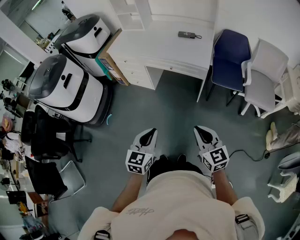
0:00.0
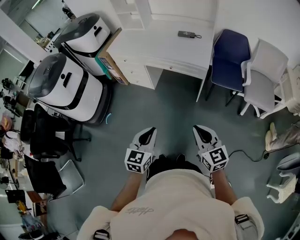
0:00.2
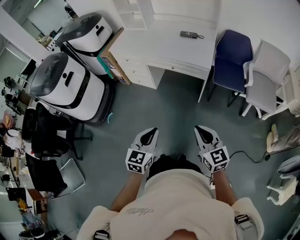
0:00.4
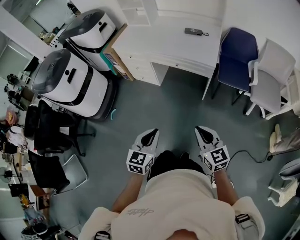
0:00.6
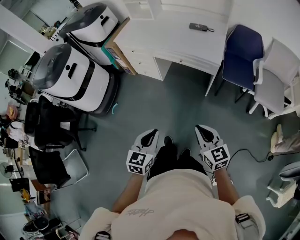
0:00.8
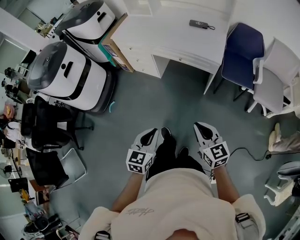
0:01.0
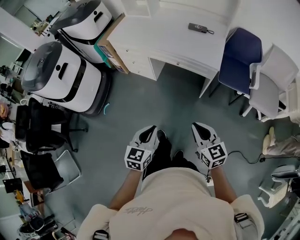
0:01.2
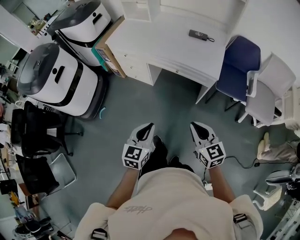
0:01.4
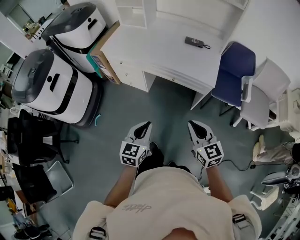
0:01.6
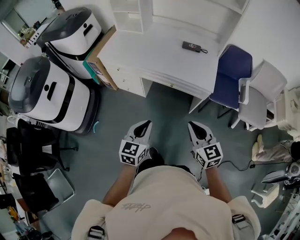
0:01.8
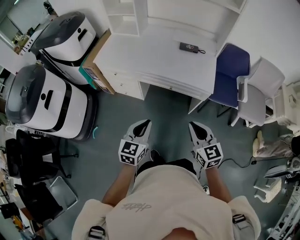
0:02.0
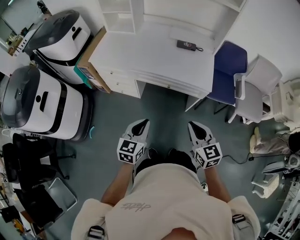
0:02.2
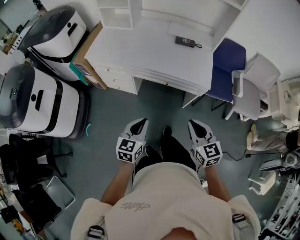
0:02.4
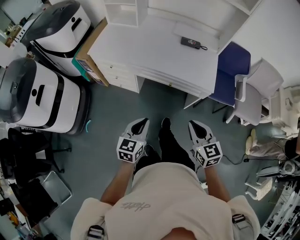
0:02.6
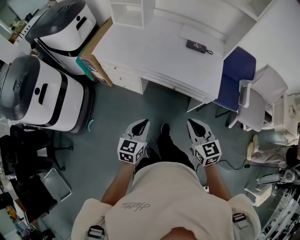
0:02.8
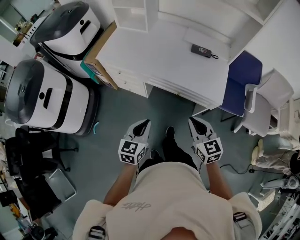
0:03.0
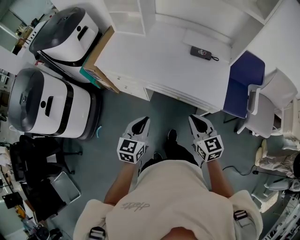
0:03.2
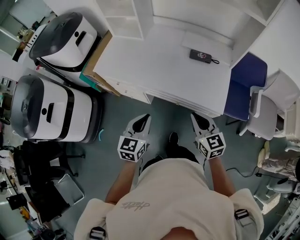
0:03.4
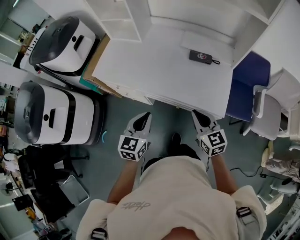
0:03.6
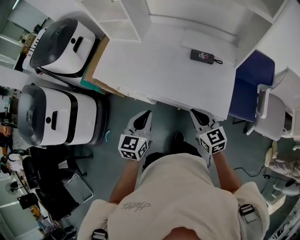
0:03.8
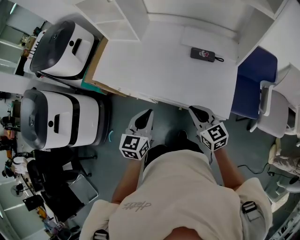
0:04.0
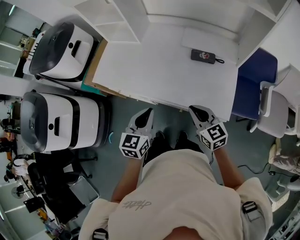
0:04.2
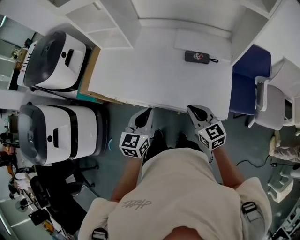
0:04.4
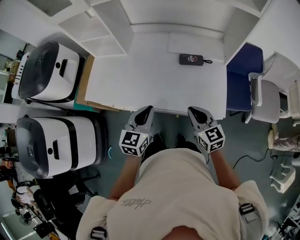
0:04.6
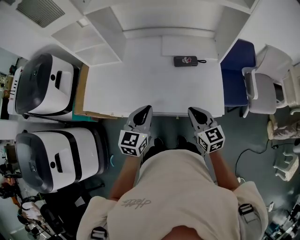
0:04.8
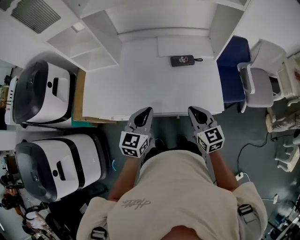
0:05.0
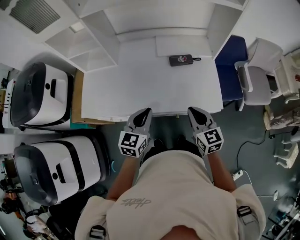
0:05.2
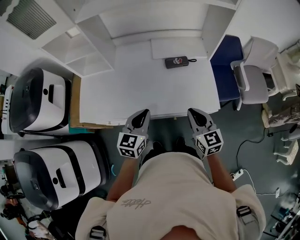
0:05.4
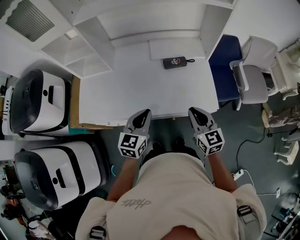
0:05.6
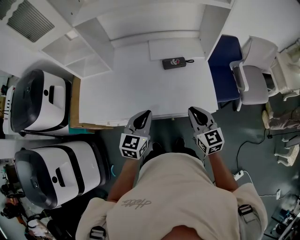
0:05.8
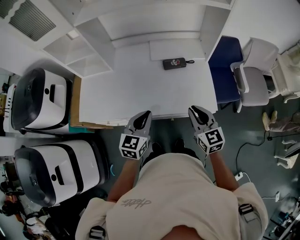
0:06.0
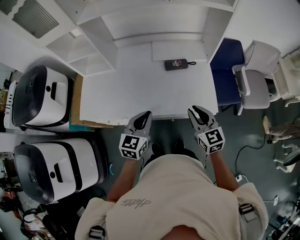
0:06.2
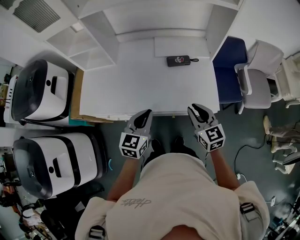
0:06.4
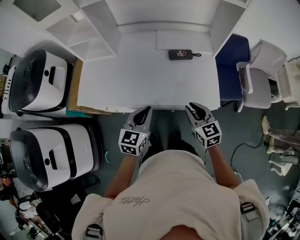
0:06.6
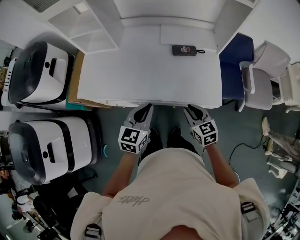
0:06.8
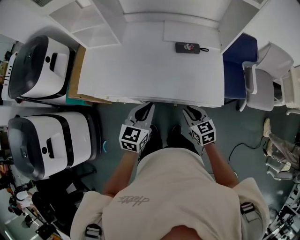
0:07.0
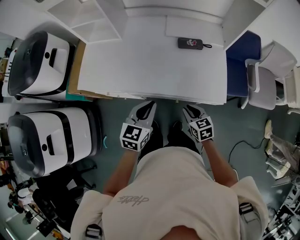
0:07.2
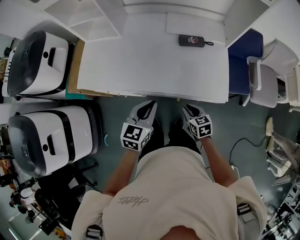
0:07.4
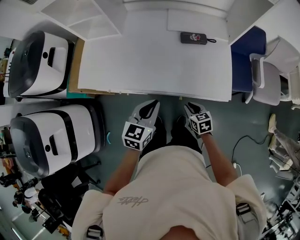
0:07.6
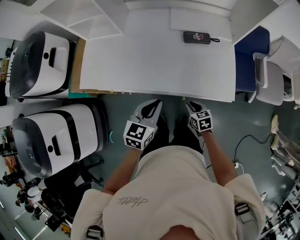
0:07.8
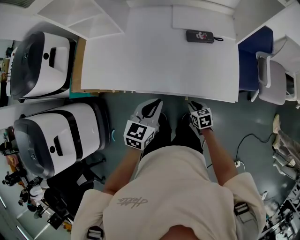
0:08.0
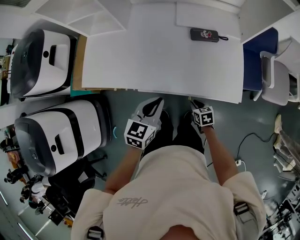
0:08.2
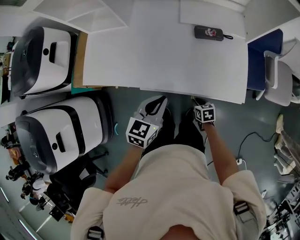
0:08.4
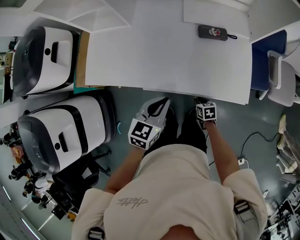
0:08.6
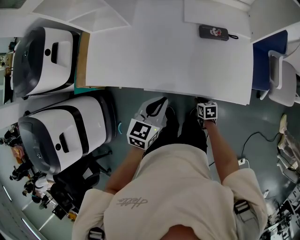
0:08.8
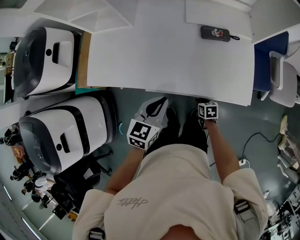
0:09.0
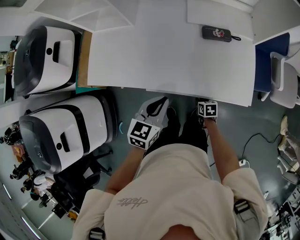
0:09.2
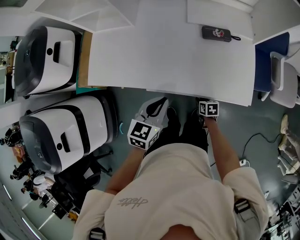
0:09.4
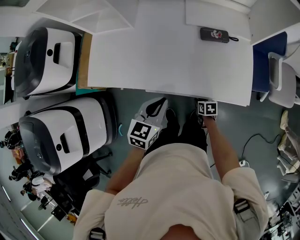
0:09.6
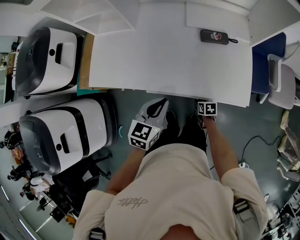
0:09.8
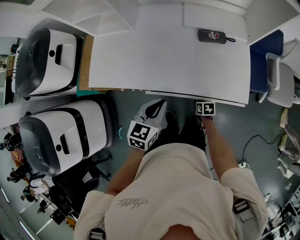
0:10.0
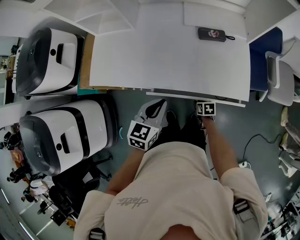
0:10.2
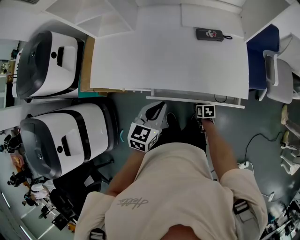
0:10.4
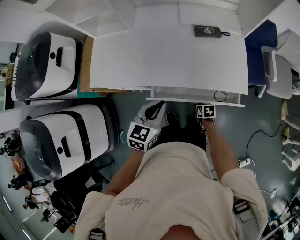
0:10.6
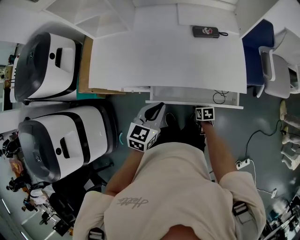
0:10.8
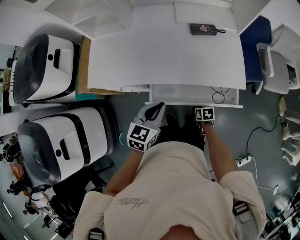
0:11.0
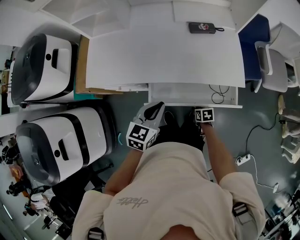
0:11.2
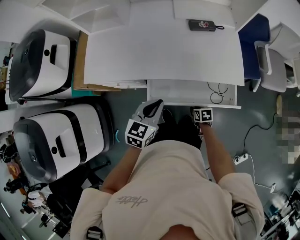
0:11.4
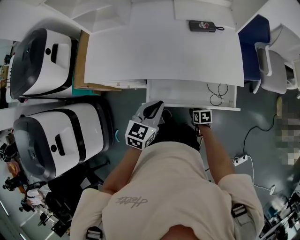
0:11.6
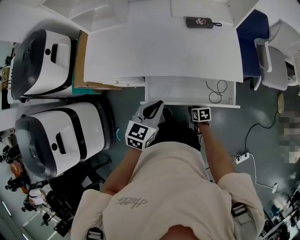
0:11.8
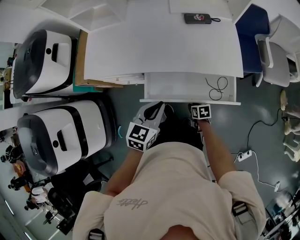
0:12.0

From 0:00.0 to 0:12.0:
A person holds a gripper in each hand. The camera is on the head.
From 0:00.0 to 0:01.6: The grippers both shift forward by roughly 20 cm.
From 0:01.6 to 0:03.0: The grippers both shift forward by approximately 15 cm.
From 0:03.0 to 0:04.4: The grippers both shift forward by approximately 25 cm.
From 0:04.4 to 0:06.0: The right gripper changes place by roughly 5 cm, and turns by about 20 degrees.
From 0:06.0 to 0:07.6: The right gripper travels downward by roughly 25 cm, and turns by roughly 40 degrees; the left gripper heads downward, covering roughly 5 cm.
From 0:07.6 to 0:09.0: The left gripper shifts by about 5 cm, while the right gripper moves downward, about 15 cm, and turns by some 20 degrees.
From 0:09.0 to 0:10.4: The left gripper changes place by approximately 5 cm.
From 0:10.4 to 0:12.0: Both grippers move backward, approximately 10 cm.

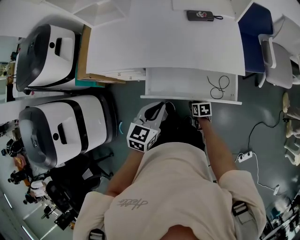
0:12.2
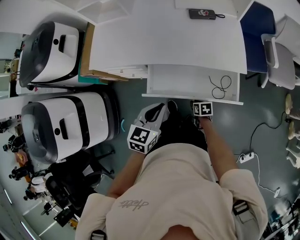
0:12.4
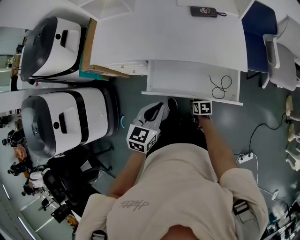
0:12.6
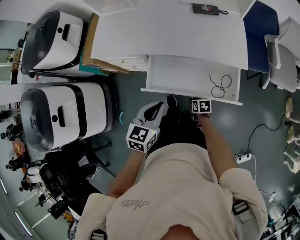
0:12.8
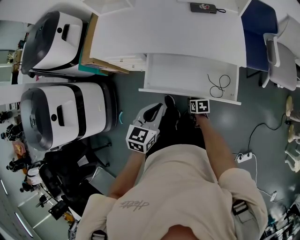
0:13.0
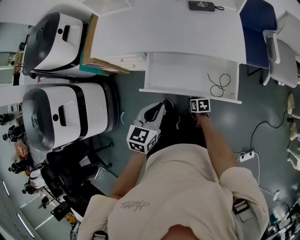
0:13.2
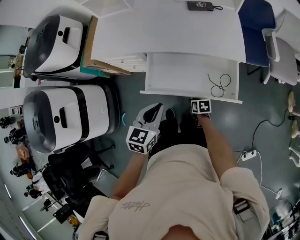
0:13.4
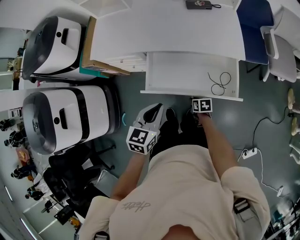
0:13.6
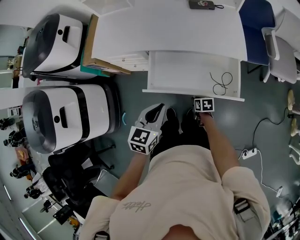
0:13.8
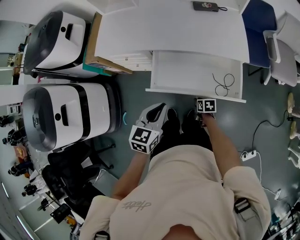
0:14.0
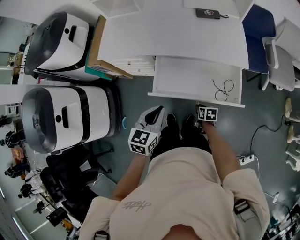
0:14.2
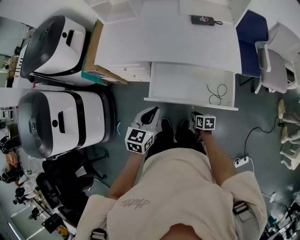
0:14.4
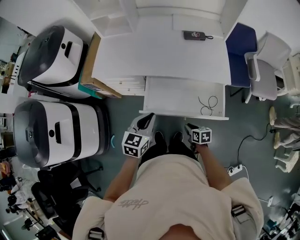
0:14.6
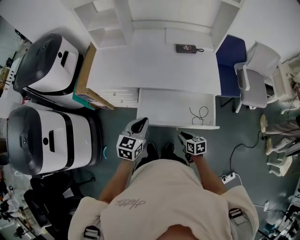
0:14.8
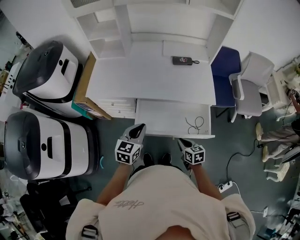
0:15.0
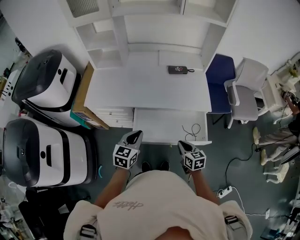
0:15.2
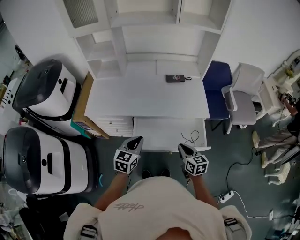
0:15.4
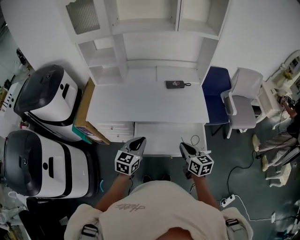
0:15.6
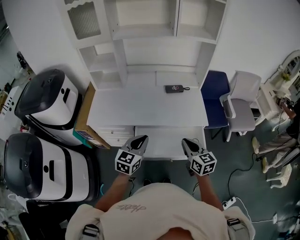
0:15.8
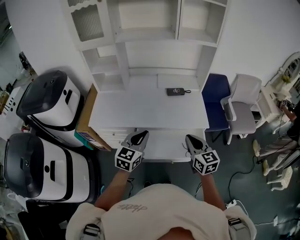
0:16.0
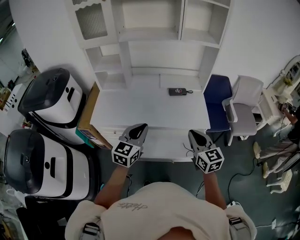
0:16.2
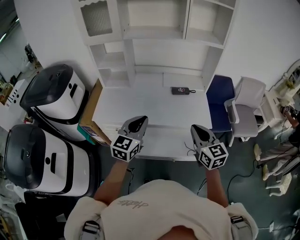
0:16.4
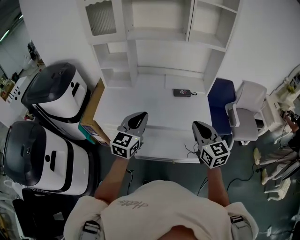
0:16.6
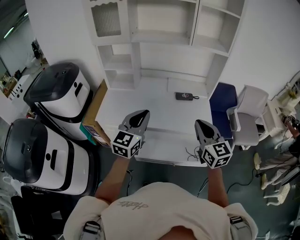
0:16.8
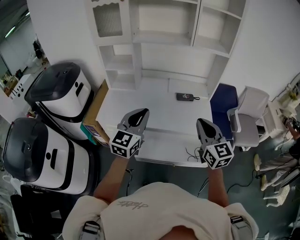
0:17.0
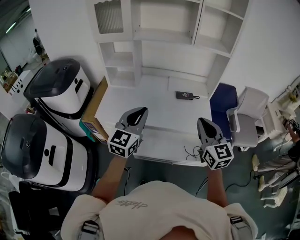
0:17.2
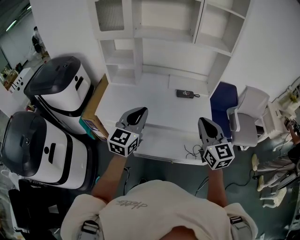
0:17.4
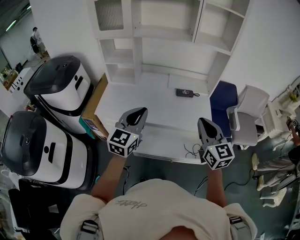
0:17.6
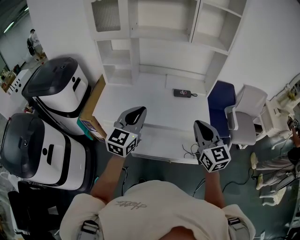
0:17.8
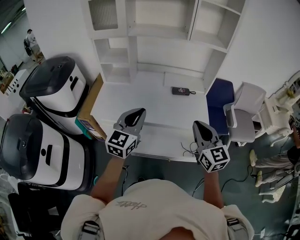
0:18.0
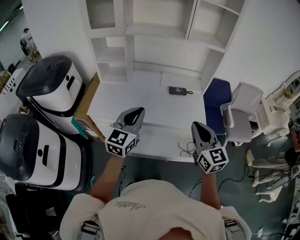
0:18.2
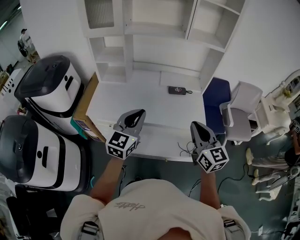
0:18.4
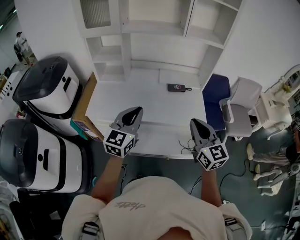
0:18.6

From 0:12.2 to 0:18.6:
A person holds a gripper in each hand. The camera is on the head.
From 0:12.2 to 0:13.8: The right gripper shifts about 5 cm backward, while the left gripper goes approximately 10 cm backward.
From 0:13.8 to 0:15.4: The left gripper heads forward and upward, covering about 10 cm; the right gripper is displaced upward by some 30 cm, and tilts its fingers roughly 30 degrees upward.
From 0:15.4 to 0:17.0: Both grippers move upward, roughly 25 cm. The left gripper turns by about 30 degrees; the right gripper turns by some 30 degrees.
From 0:17.0 to 0:18.6: There are only small adjustments of the grippers.

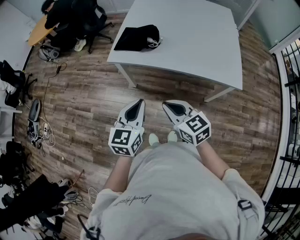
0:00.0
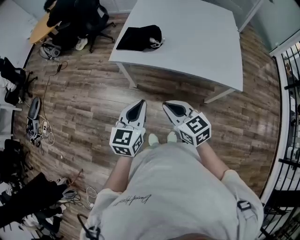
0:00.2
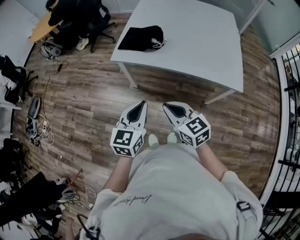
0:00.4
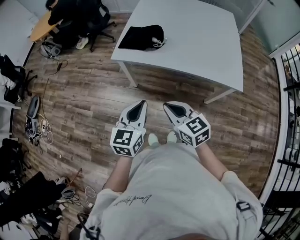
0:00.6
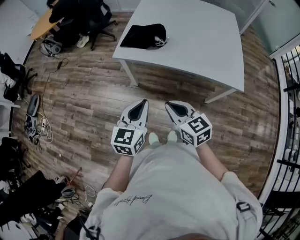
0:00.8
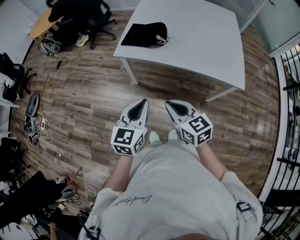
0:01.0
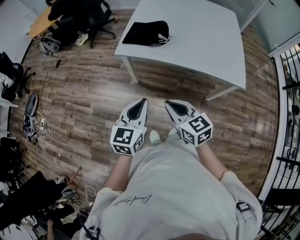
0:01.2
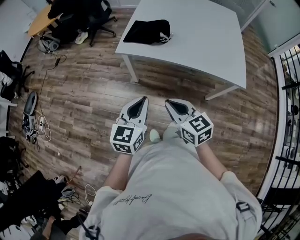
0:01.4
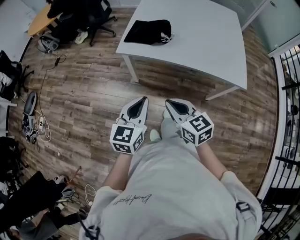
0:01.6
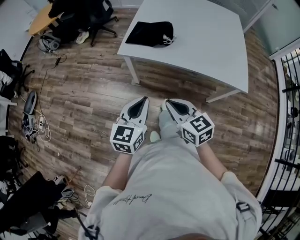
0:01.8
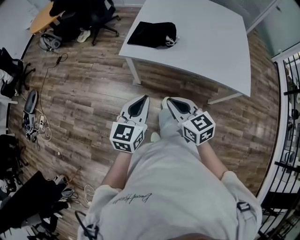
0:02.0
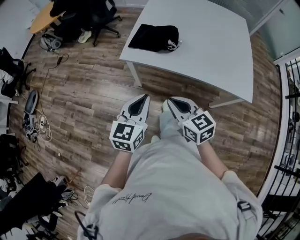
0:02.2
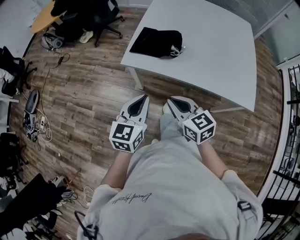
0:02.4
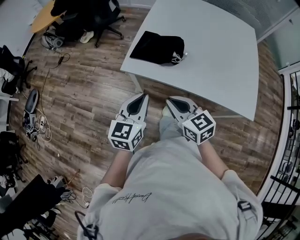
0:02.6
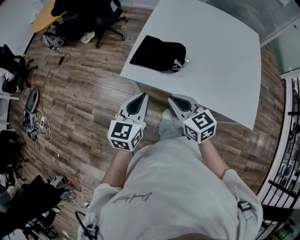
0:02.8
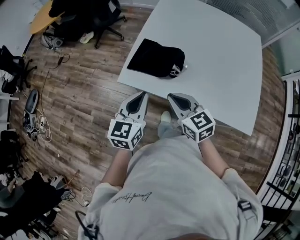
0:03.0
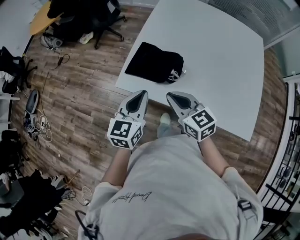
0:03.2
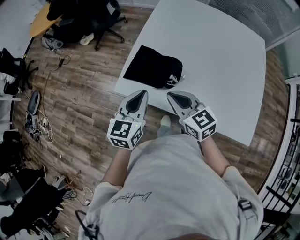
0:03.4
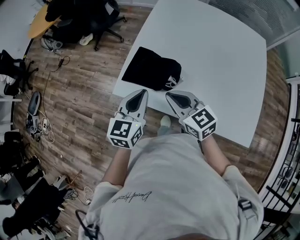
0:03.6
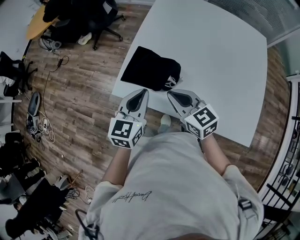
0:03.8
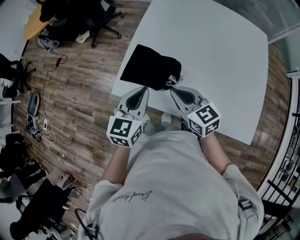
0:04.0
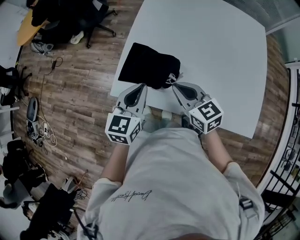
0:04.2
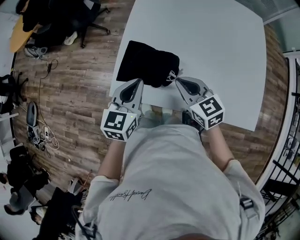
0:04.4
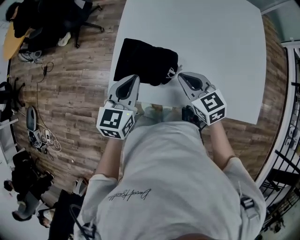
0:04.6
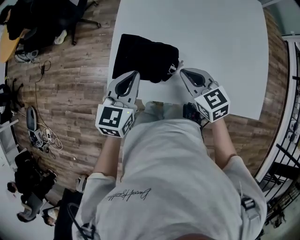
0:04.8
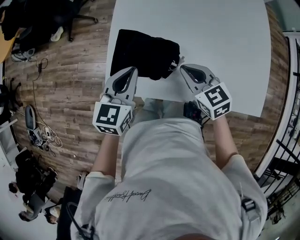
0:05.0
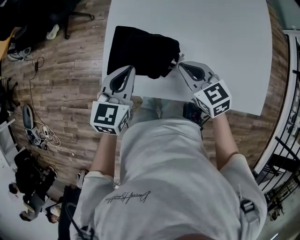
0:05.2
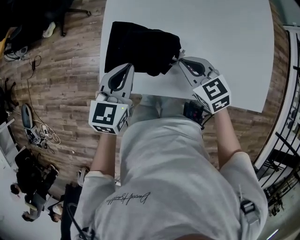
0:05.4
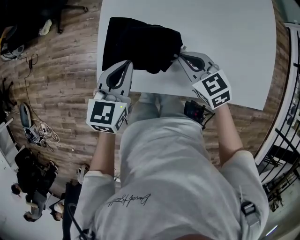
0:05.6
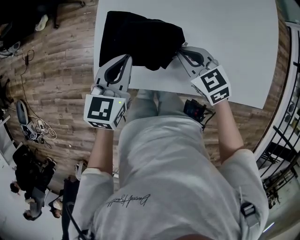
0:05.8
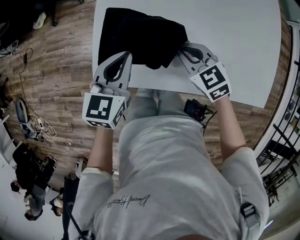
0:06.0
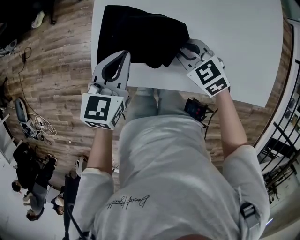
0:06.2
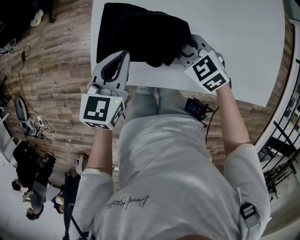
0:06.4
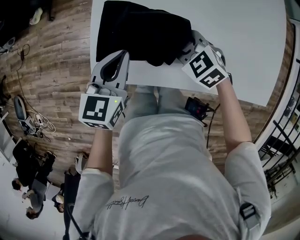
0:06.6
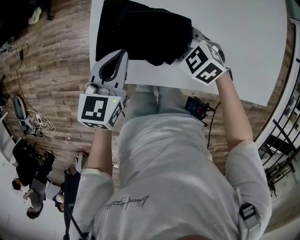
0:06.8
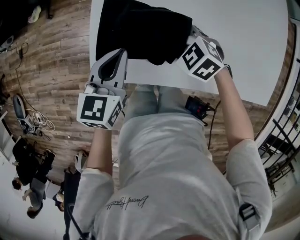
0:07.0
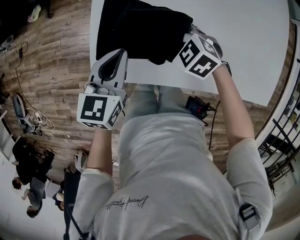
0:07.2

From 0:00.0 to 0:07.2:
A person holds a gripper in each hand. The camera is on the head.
From 0:00.0 to 0:01.4: Both grippers move to the left, about 5 cm.
From 0:01.4 to 0:02.8: The grippers both shift forward by some 25 cm.
From 0:02.8 to 0:04.4: The right gripper is displaced forward and to the right by about 20 cm, while the left gripper shifts approximately 20 cm forward.
From 0:04.4 to 0:05.8: Both grippers travel together downward, about 10 cm.
From 0:05.8 to 0:07.2: The right gripper travels downward and to the left by about 10 cm, turns by roughly 30 degrees, and opens up.
